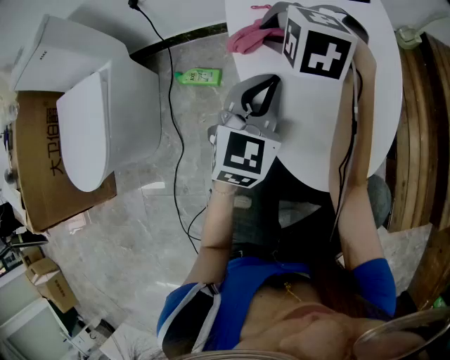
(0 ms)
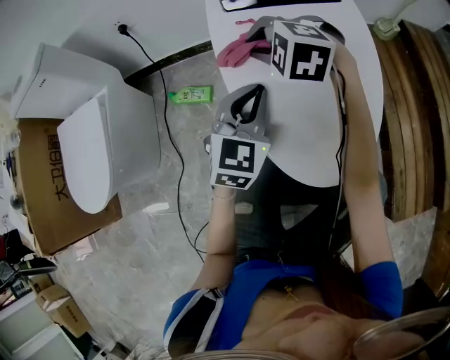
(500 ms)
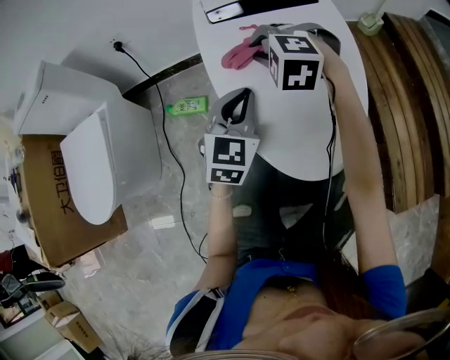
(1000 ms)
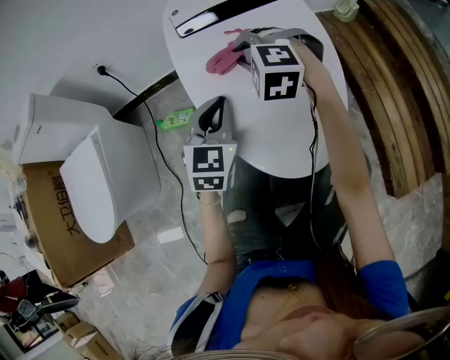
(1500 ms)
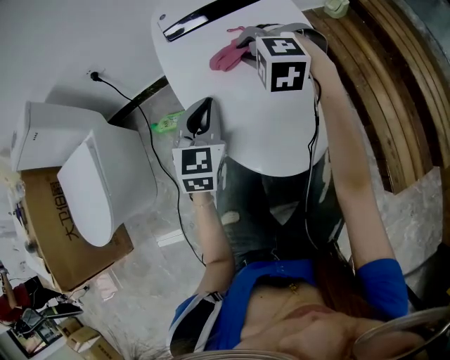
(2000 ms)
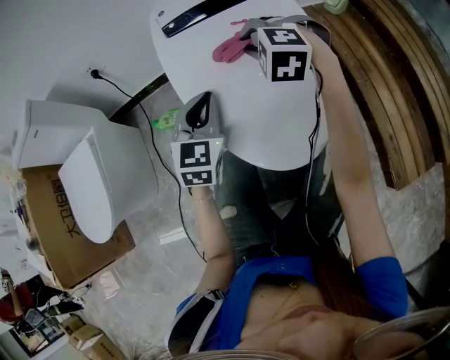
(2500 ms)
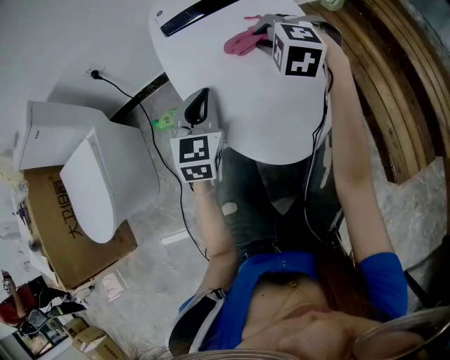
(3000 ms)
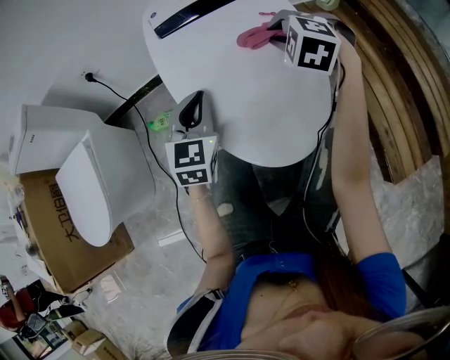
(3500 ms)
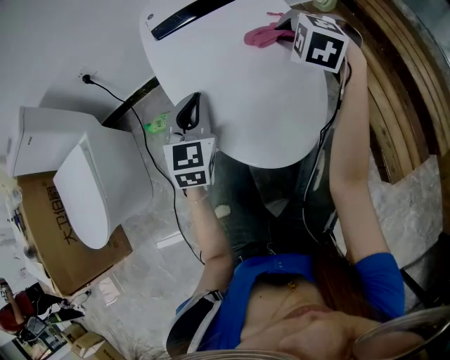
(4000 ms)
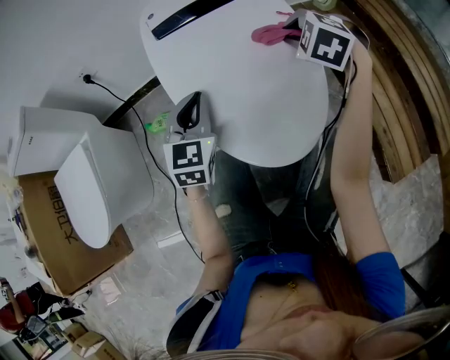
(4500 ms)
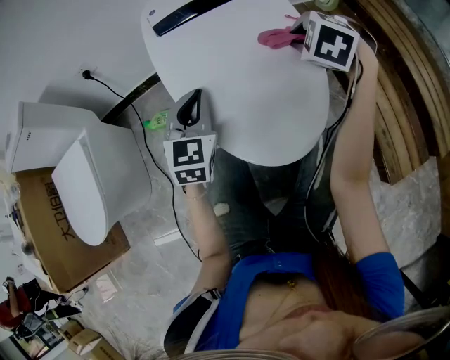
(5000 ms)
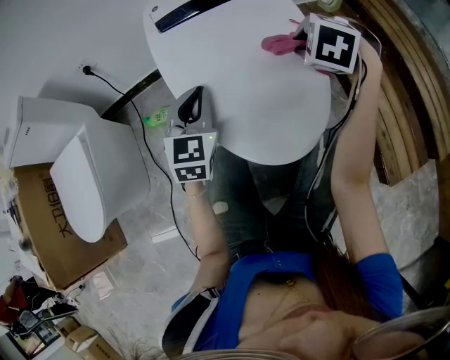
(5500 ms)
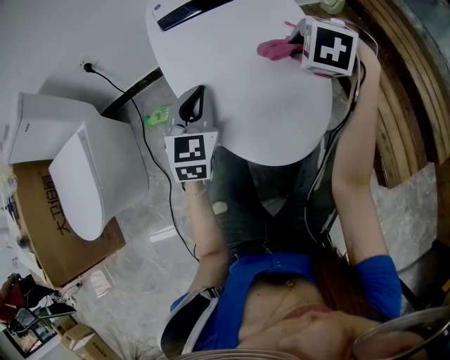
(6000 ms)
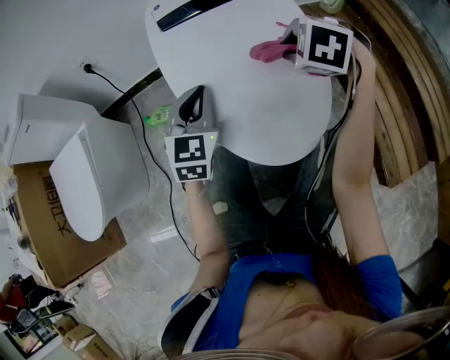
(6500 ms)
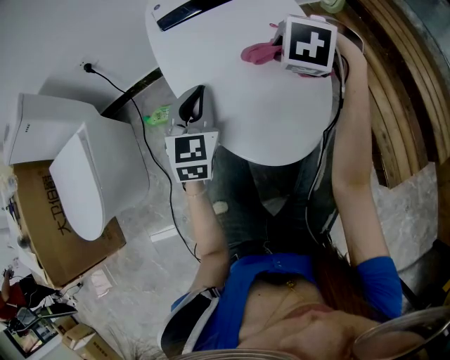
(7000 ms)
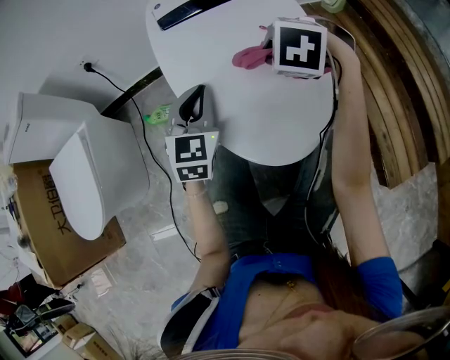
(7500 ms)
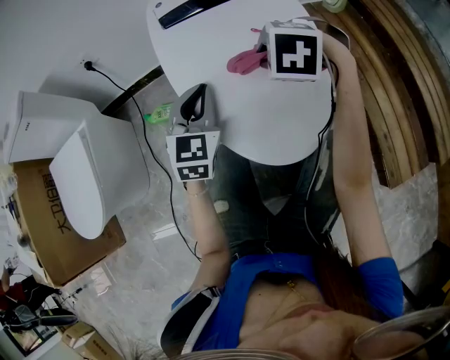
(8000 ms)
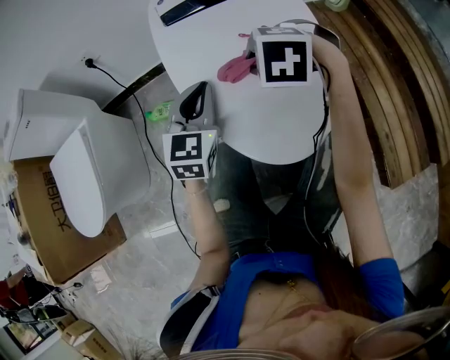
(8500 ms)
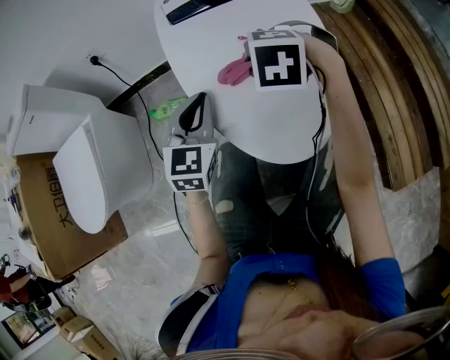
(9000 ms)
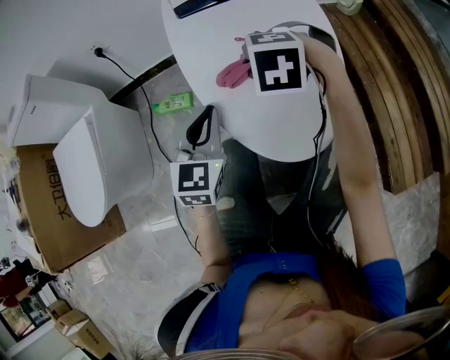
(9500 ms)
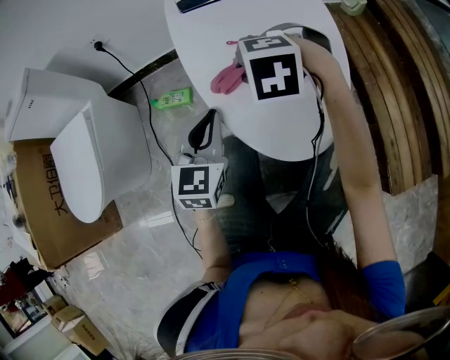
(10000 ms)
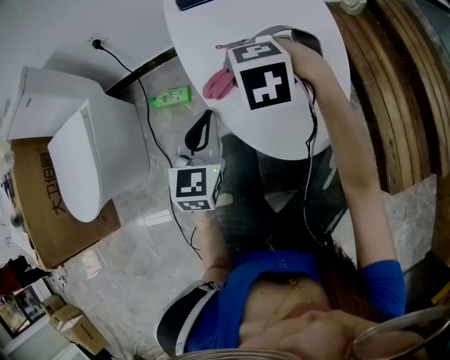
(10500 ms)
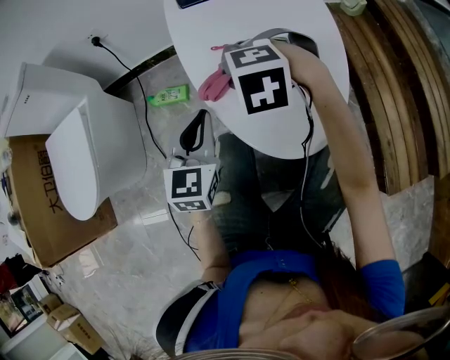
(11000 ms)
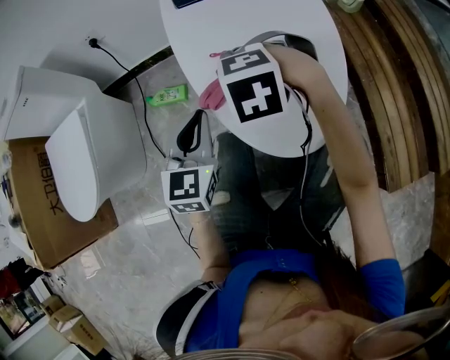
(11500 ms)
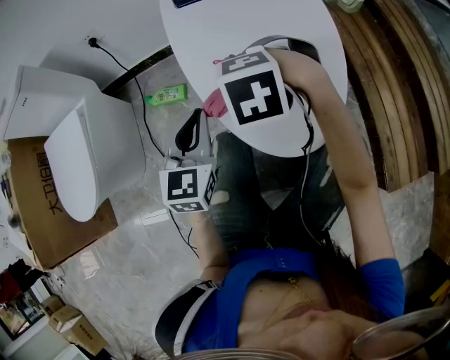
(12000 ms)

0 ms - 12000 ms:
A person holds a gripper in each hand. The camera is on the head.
0 ms - 2000 ms: The right gripper shifts roughly 15 cm to the right.
2000 ms - 4000 ms: The right gripper goes roughly 10 cm to the right.
4000 ms - 6000 ms: The right gripper moves approximately 5 cm.
6000 ms - 8000 ms: The right gripper is displaced to the left by approximately 10 cm.
8000 ms - 10000 ms: The left gripper moves backward and to the left, about 10 cm, while the right gripper goes roughly 10 cm to the left.
10000 ms - 12000 ms: The right gripper moves roughly 5 cm.

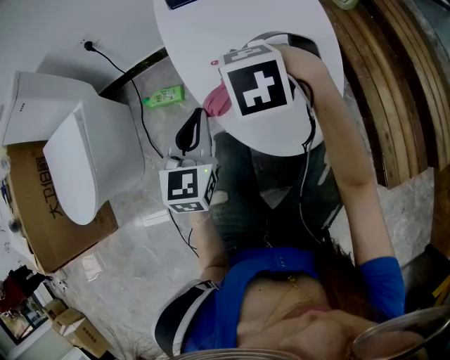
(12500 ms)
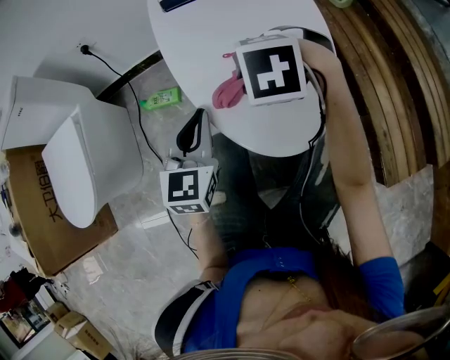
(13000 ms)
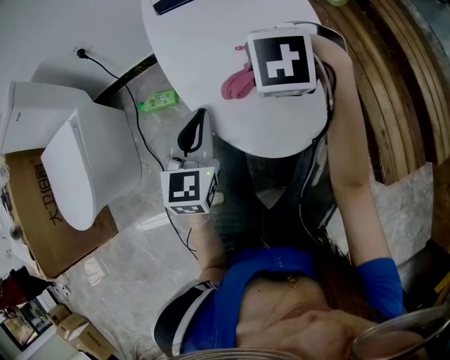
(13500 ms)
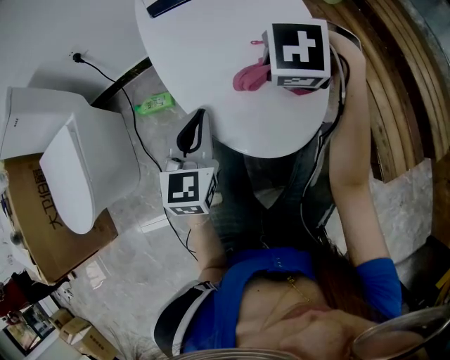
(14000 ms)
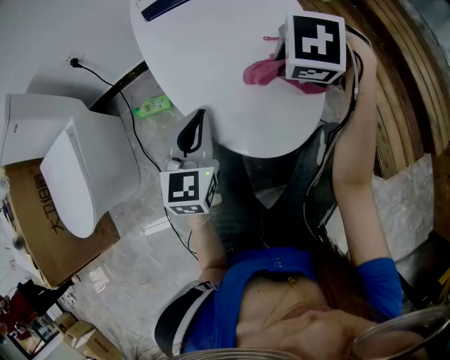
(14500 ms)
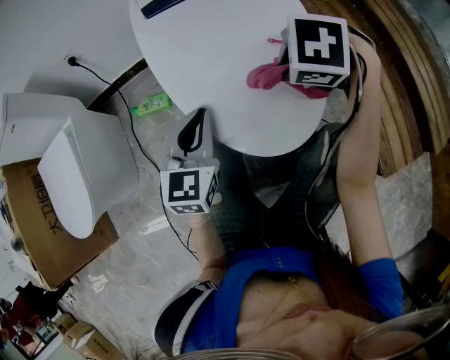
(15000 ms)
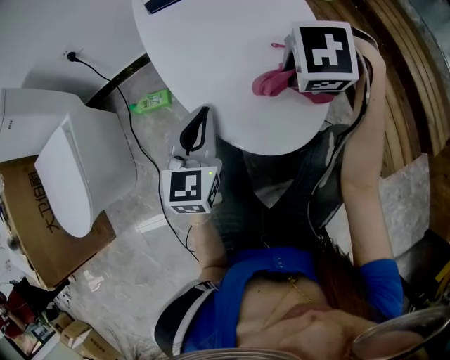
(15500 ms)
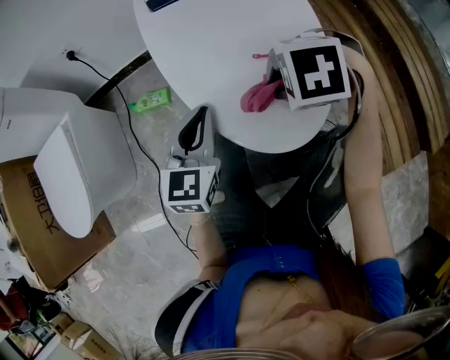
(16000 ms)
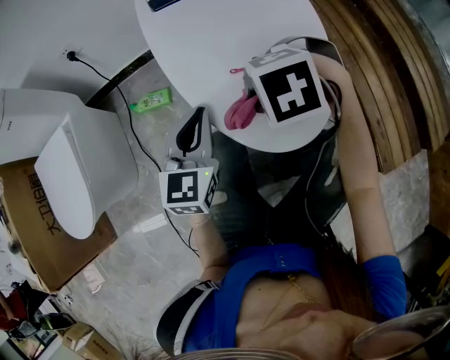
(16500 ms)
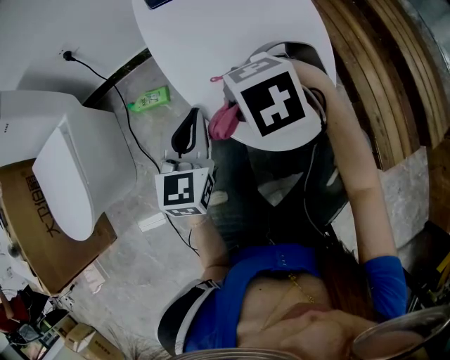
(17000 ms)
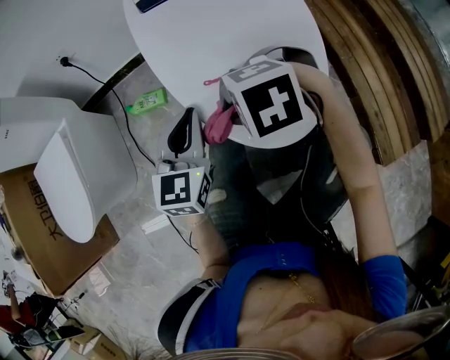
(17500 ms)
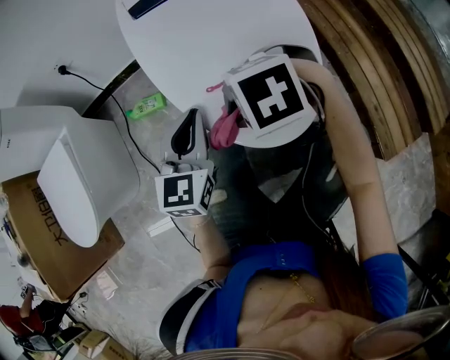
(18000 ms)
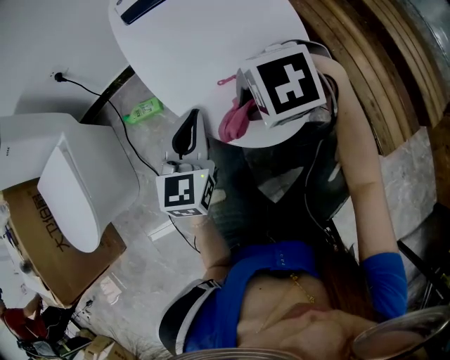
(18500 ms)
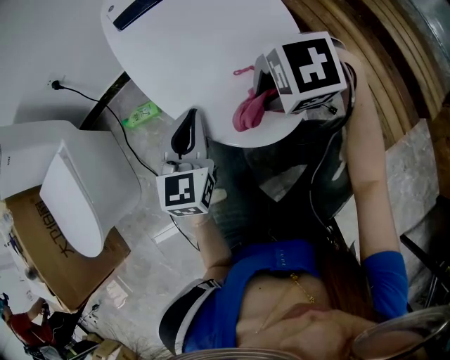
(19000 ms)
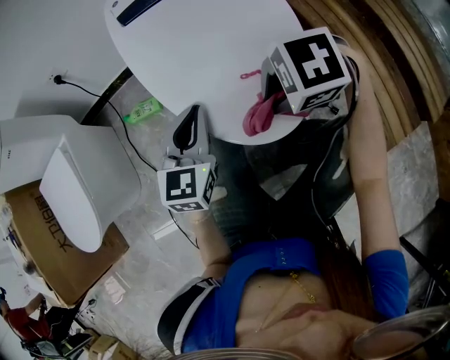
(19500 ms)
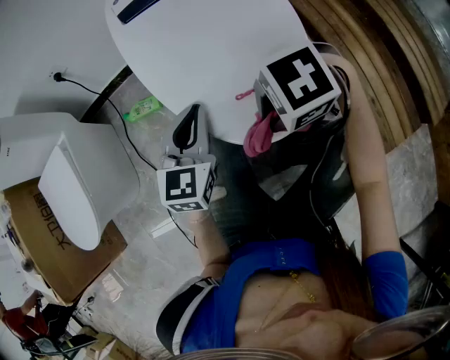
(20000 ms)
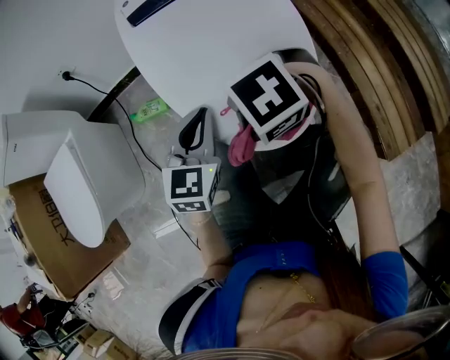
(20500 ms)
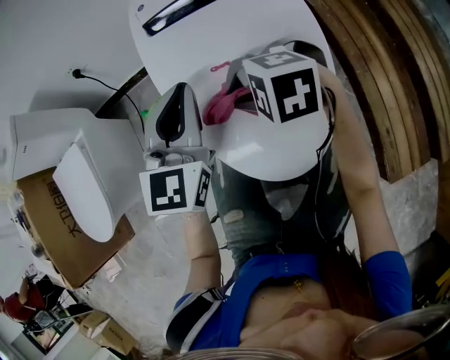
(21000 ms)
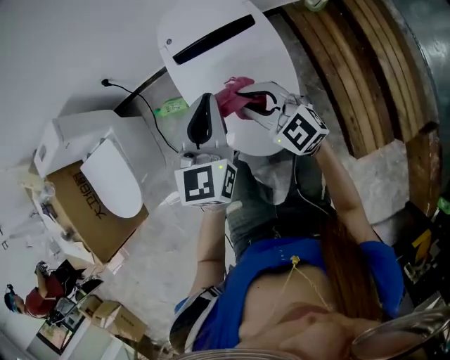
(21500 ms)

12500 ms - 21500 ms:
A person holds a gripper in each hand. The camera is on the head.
12500 ms - 14500 ms: The left gripper moves roughly 5 cm. Meanwhile the right gripper ends up some 15 cm from where it was, and changes its angle by approximately 30 degrees.
14500 ms - 17000 ms: The right gripper ends up about 15 cm from where it was, and swivels about 30 degrees.
17000 ms - 19500 ms: The right gripper moves some 10 cm, while the left gripper changes place by about 5 cm.
19500 ms - 21500 ms: Both grippers travel together upward, approximately 30 cm. The right gripper angles its fingers upward, by about 50 degrees.

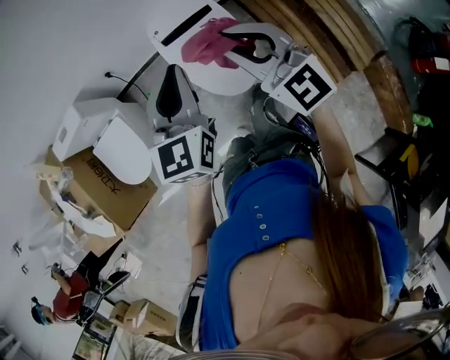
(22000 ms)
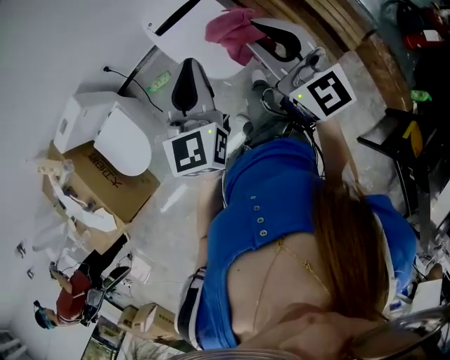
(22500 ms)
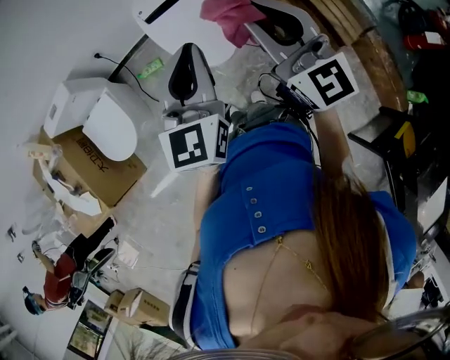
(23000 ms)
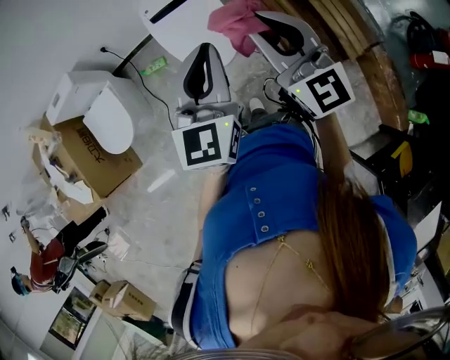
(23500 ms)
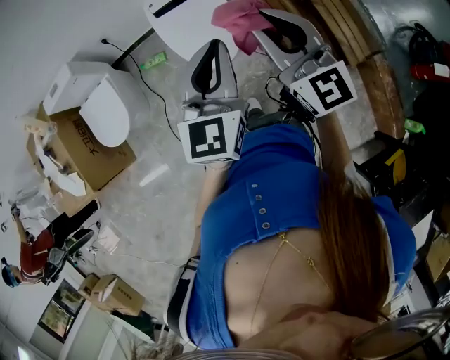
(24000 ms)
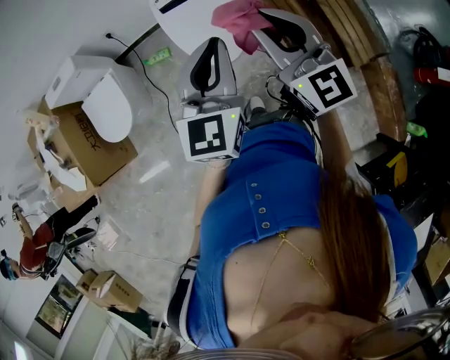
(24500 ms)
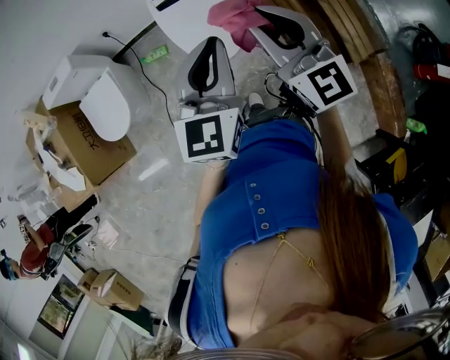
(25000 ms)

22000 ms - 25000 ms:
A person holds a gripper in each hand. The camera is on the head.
22000 ms - 23500 ms: Both grippers travel together backward and to the right, some 25 cm.
23500 ms - 25000 ms: The grippers move only a little.

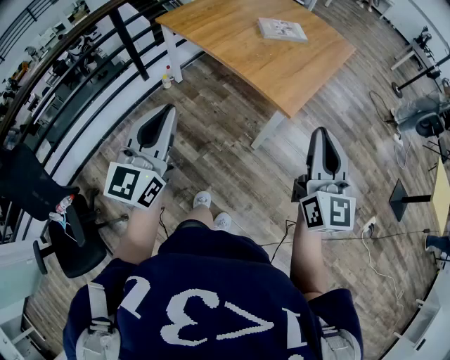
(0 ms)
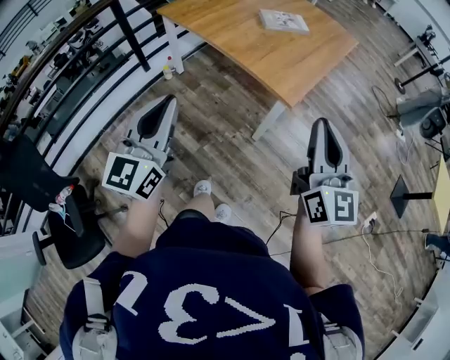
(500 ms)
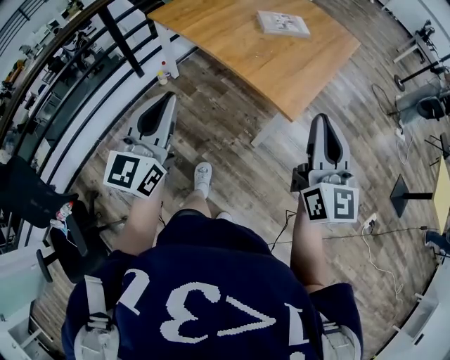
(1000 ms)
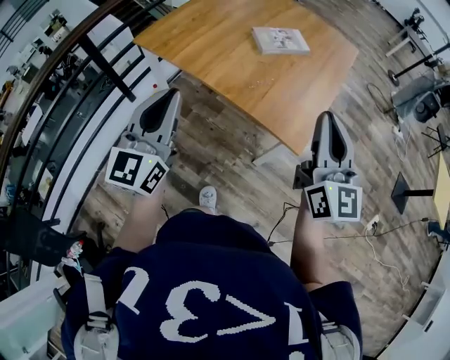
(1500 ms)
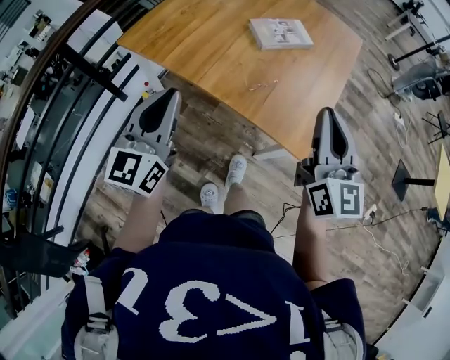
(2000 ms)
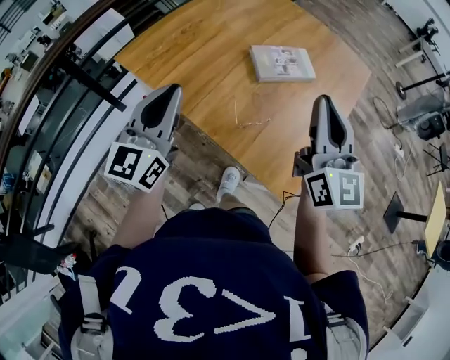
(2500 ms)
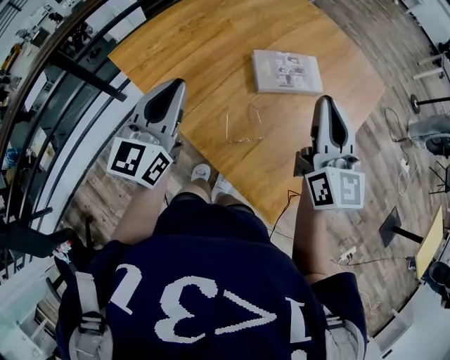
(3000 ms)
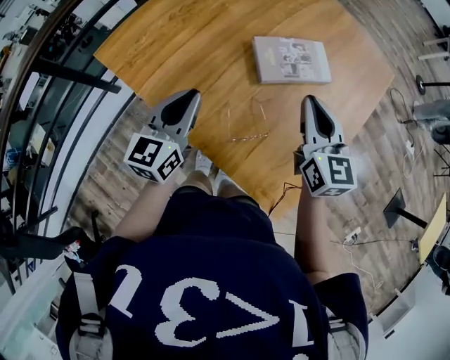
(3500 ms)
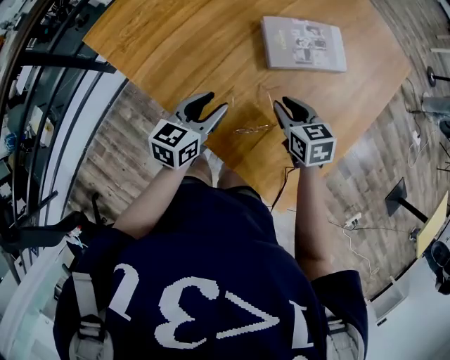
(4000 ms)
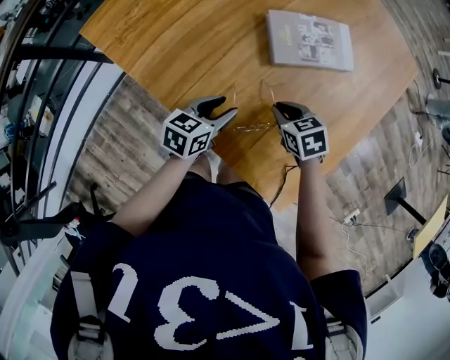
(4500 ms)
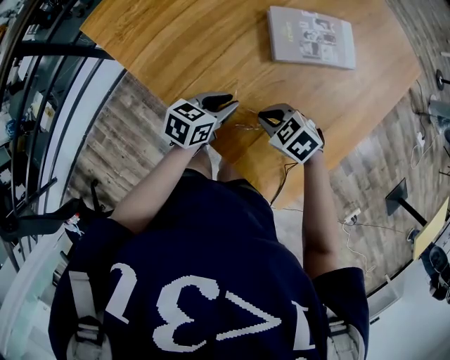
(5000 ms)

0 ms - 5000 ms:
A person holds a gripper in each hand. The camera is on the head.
0 ms - 2500 ms: The two grippers travel together, forward, approximately 50 cm.
2500 ms - 5000 ms: Both grippers move downward, approximately 35 cm. The right gripper tips its fingers downward by some 70 degrees, while the left gripper points its fingers some 40 degrees further downward.
